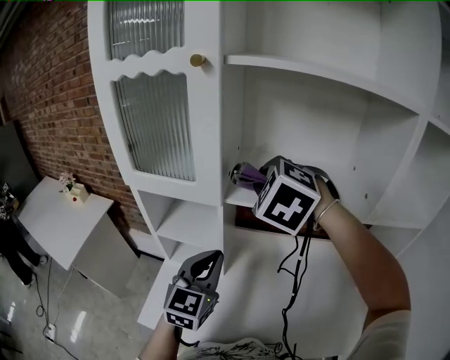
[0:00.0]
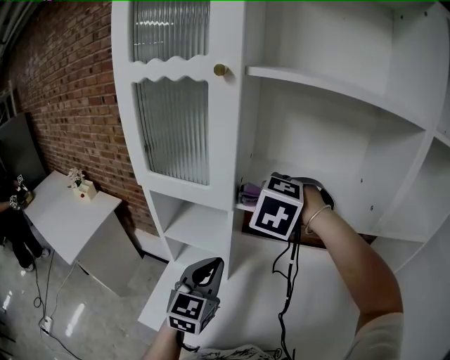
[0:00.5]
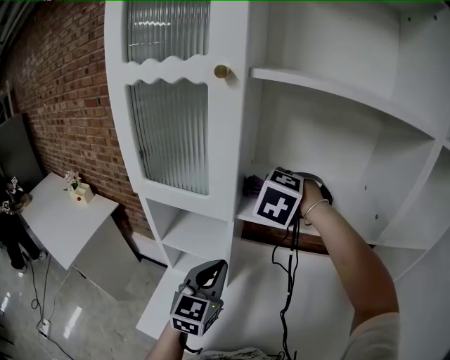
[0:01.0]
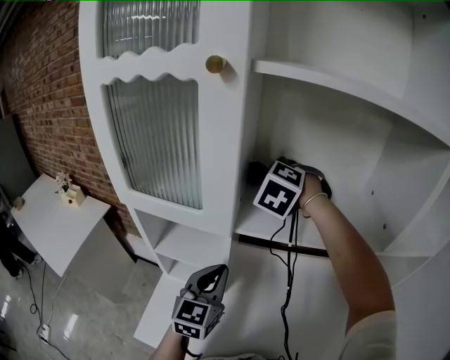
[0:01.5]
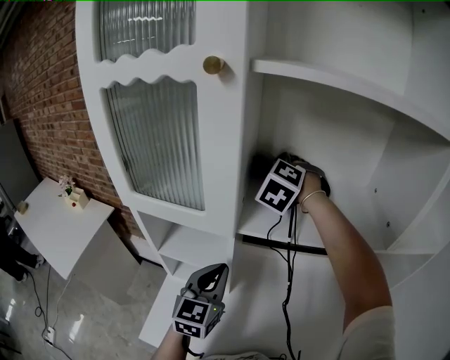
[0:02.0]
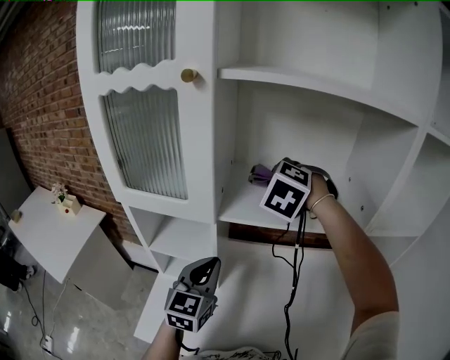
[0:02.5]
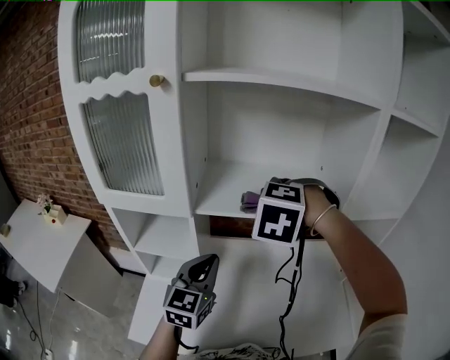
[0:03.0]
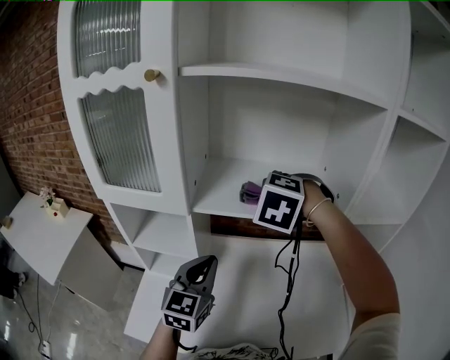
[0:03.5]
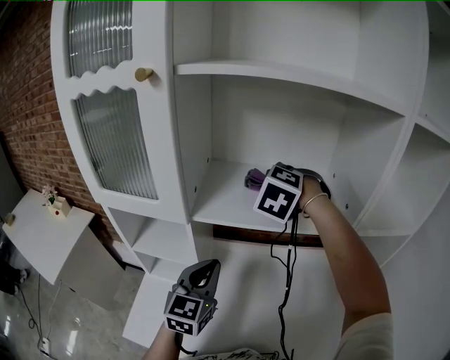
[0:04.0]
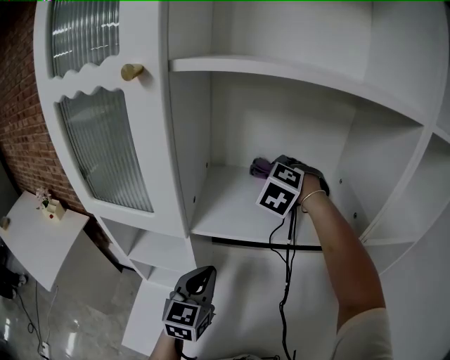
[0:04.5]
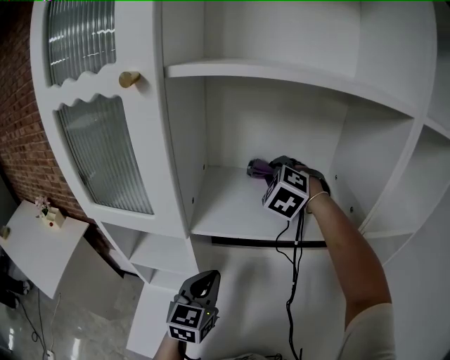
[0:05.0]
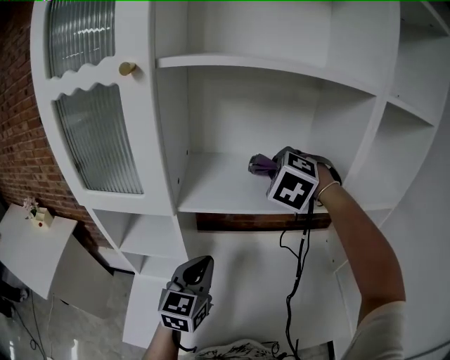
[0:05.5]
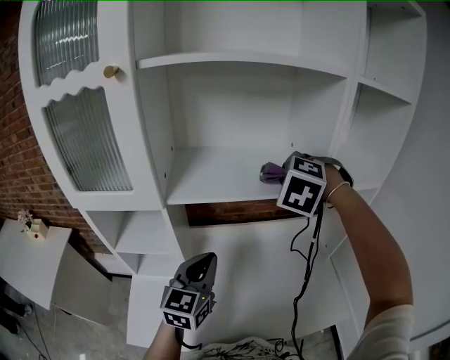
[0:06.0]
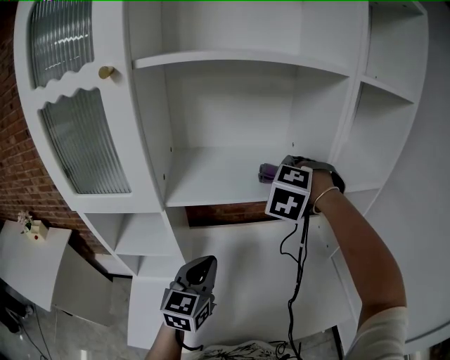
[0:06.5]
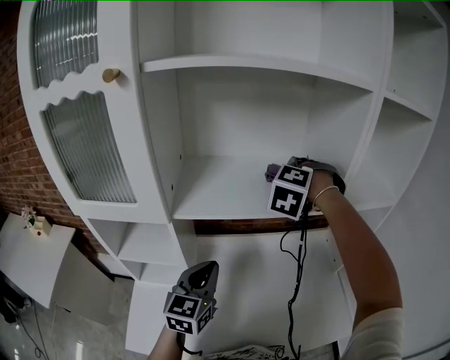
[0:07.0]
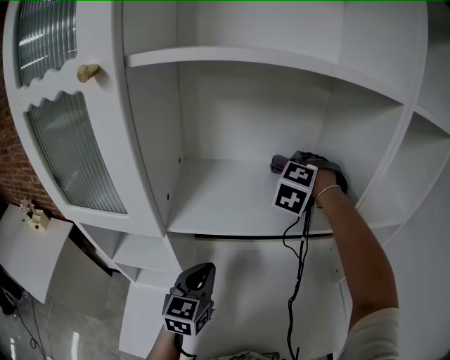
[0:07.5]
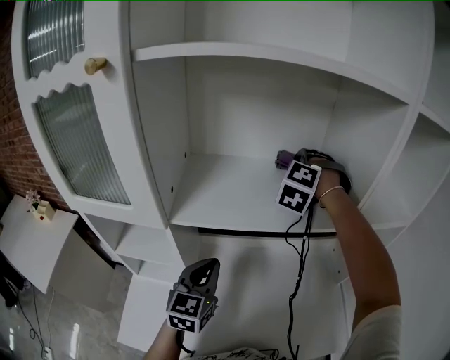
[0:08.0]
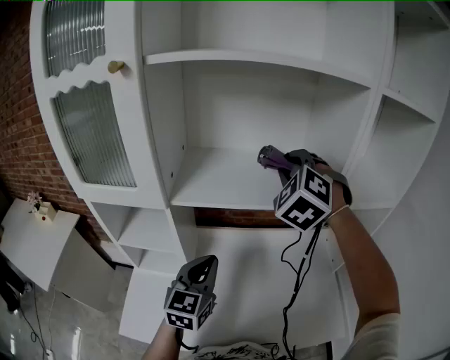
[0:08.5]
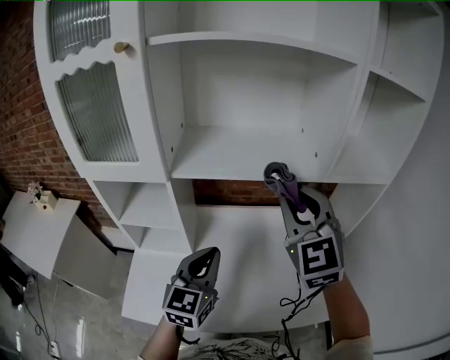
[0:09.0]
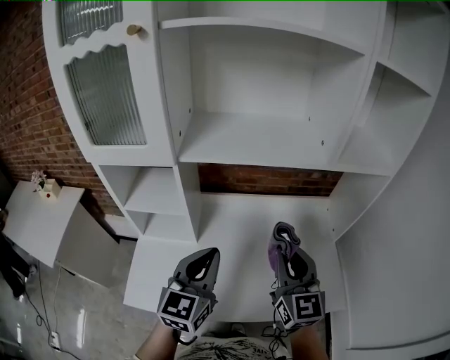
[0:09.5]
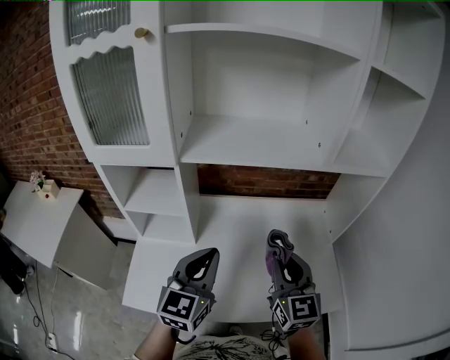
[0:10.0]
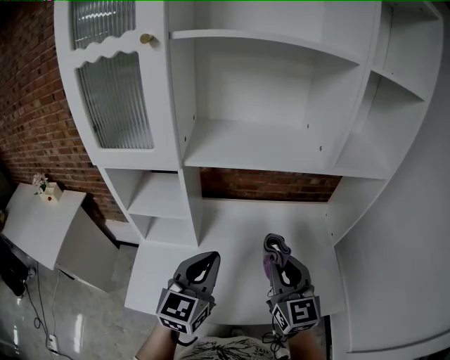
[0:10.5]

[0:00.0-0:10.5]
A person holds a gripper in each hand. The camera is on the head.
0:00.0 to 0:02.0: The left gripper goes some 5 cm forward. Meanwhile the right gripper travels forward by some 20 cm.
0:02.0 to 0:04.0: The left gripper goes approximately 10 cm to the right. Meanwhile the right gripper heads to the right and backward, covering approximately 15 cm.
0:04.0 to 0:06.5: The left gripper shifts by approximately 5 cm, while the right gripper moves to the right, some 15 cm.
0:06.5 to 0:08.5: The right gripper heads upward, covering roughly 5 cm, travels forward and back again, roughly 15 cm each way, and swivels roughly 20 degrees.
0:08.5 to 0:10.5: The right gripper is displaced backward and downward by approximately 35 cm, and rolls clockwise, seen from behind, by roughly 60 degrees; the left gripper goes roughly 10 cm backward.

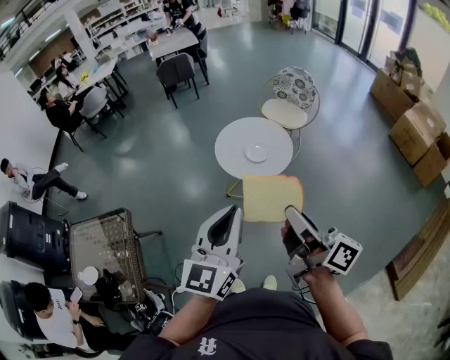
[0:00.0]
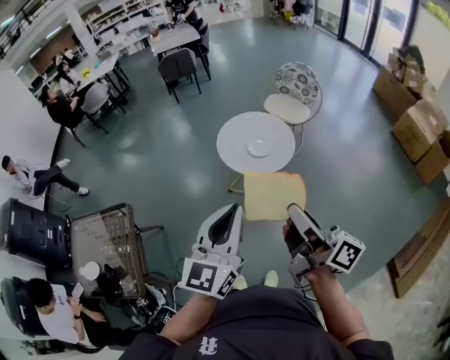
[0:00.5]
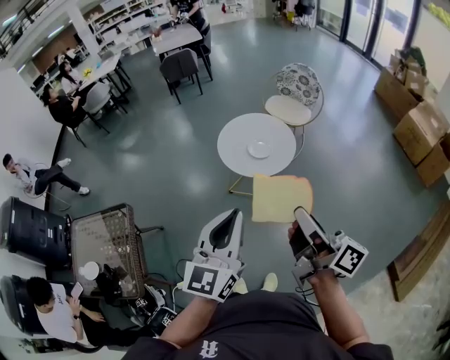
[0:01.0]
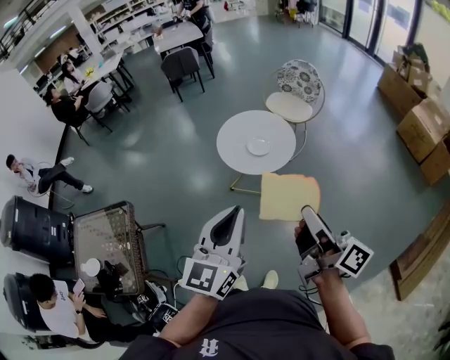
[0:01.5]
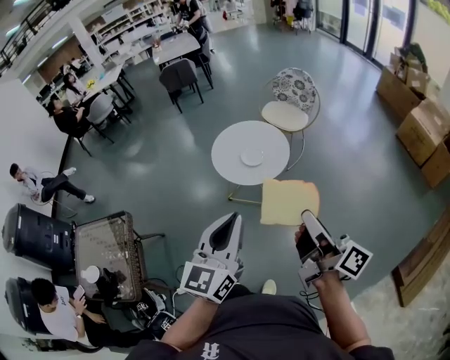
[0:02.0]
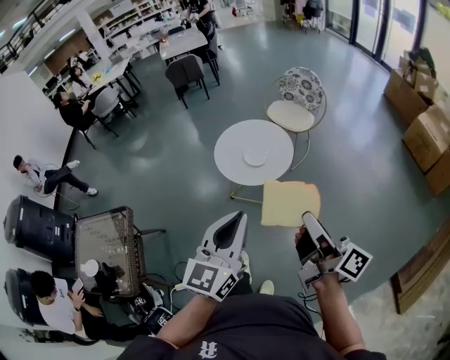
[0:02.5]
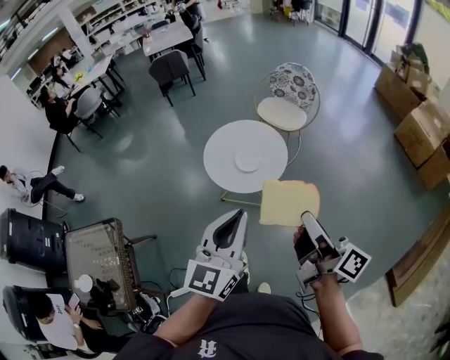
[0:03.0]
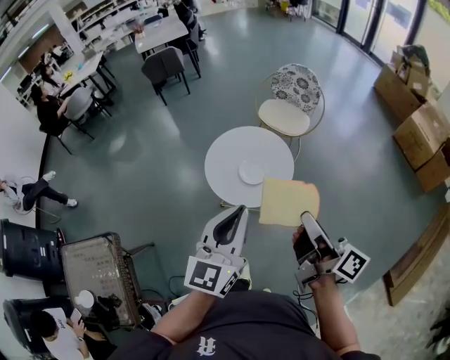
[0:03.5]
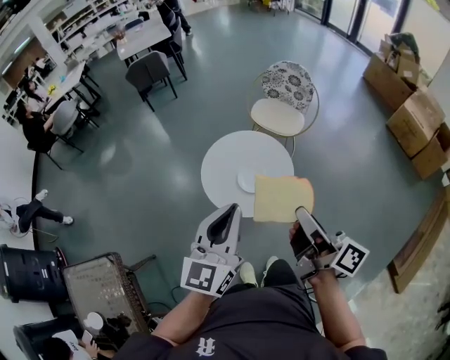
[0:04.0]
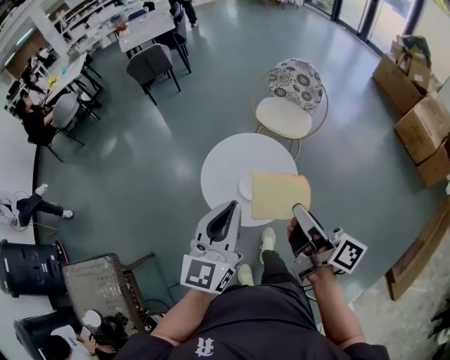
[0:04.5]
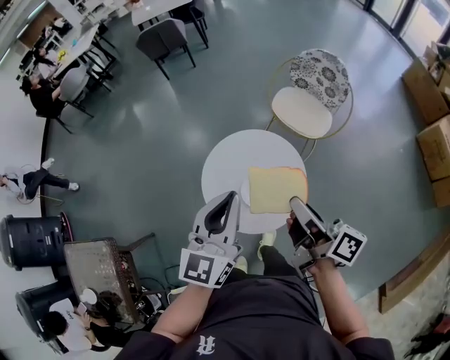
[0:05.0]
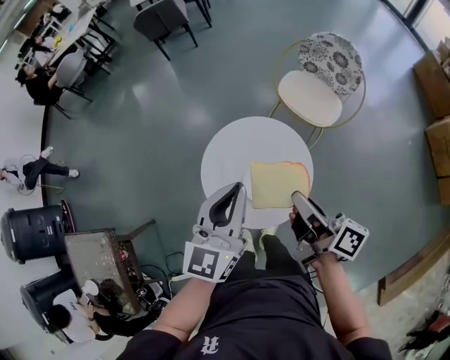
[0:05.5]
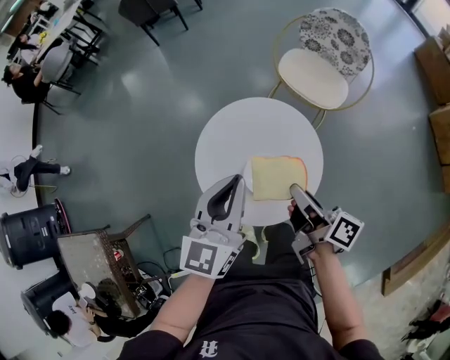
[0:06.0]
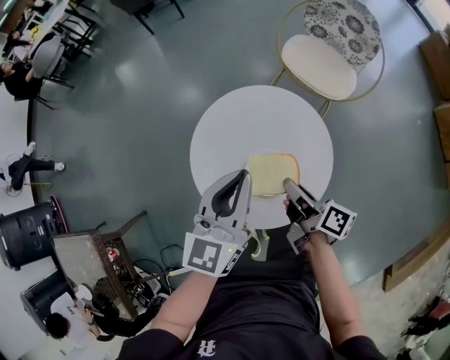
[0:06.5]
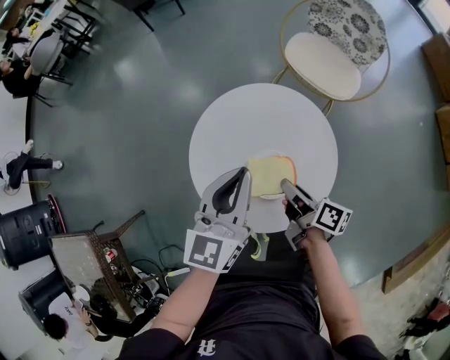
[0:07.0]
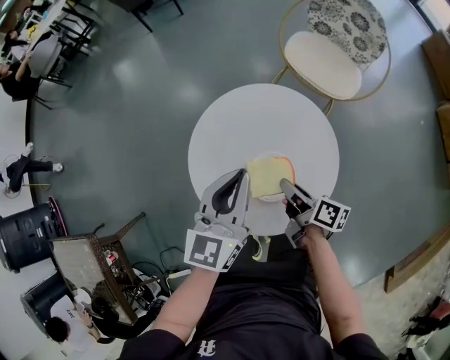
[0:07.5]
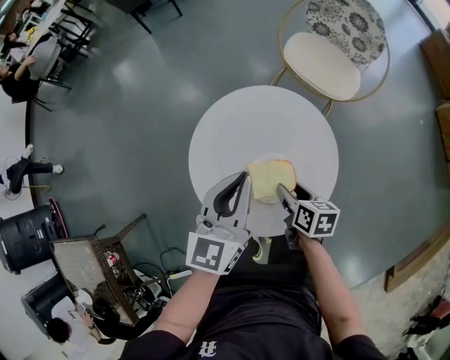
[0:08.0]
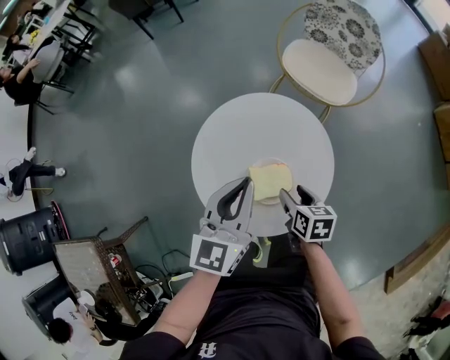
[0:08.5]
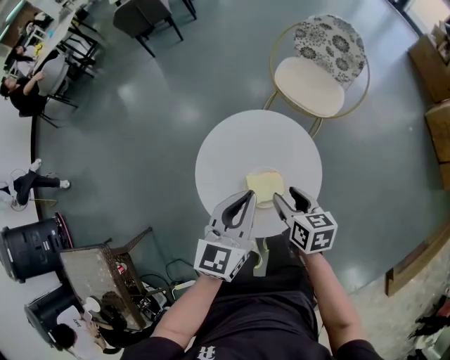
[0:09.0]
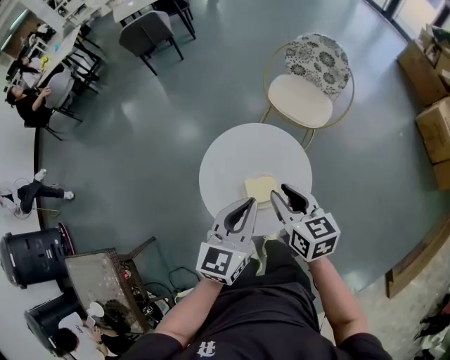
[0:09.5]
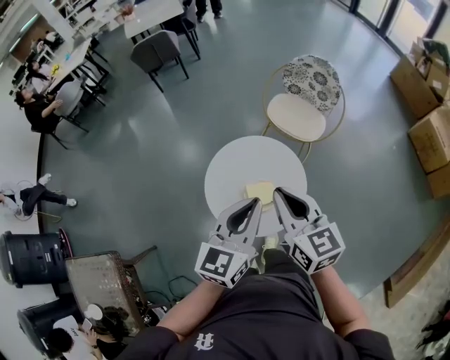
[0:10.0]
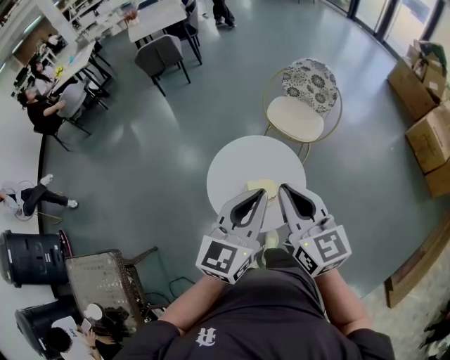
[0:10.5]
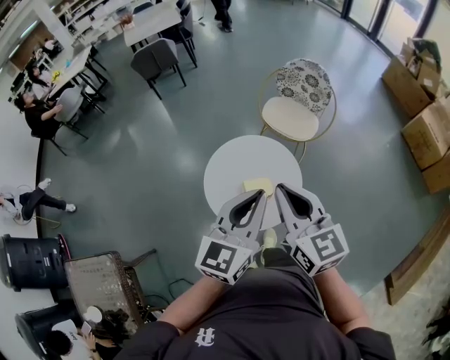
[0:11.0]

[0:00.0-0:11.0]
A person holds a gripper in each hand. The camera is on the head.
0:00.0 to 0:02.0: The left gripper is displaced to the right by roughly 10 cm, while the right gripper is displaced to the right by about 10 cm.
0:02.0 to 0:03.5: The grippers both shift forward by approximately 20 cm.
0:03.5 to 0:05.5: The right gripper shifts roughly 35 cm forward and downward, and swivels roughly 20 degrees, while the left gripper travels forward by some 30 cm.
0:05.5 to 0:07.5: The right gripper is displaced downward by some 35 cm, and turns by roughly 20 degrees. Meanwhile the left gripper heads downward, covering approximately 20 cm.
0:07.5 to 0:09.0: The right gripper shifts approximately 10 cm upward, turns by roughly 40 degrees, and opens. The left gripper travels upward by some 5 cm.
0:09.0 to 0:11.0: The right gripper travels upward by roughly 35 cm, tips its fingers upward by about 30 degrees, and closes up. Meanwhile the left gripper moves upward and backward, about 25 cm.

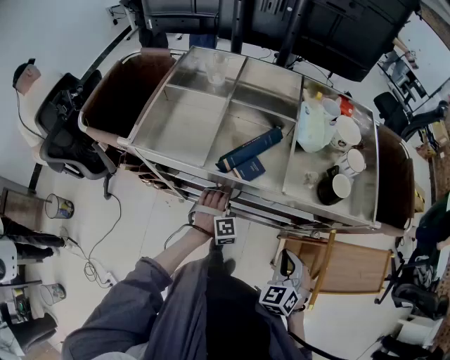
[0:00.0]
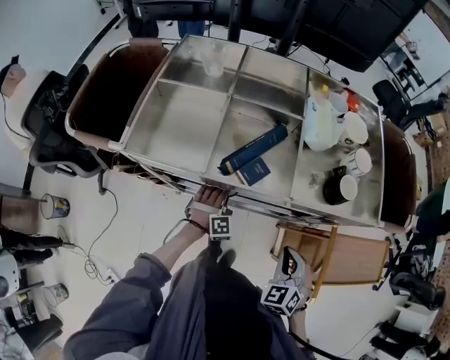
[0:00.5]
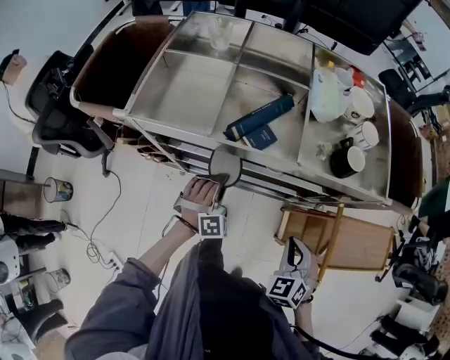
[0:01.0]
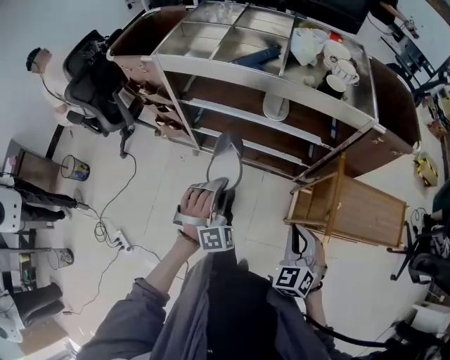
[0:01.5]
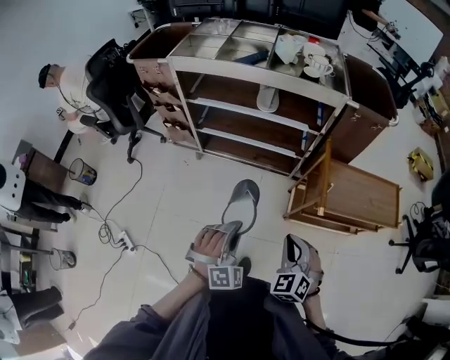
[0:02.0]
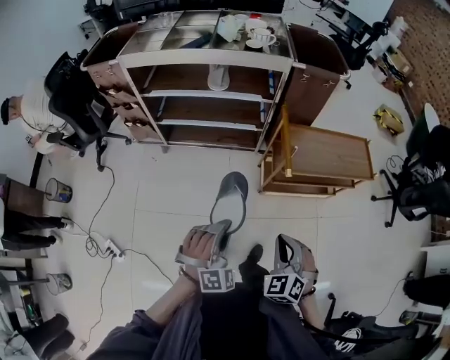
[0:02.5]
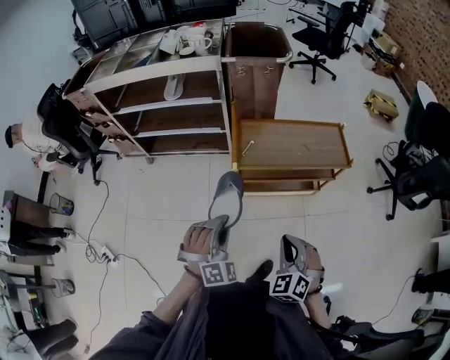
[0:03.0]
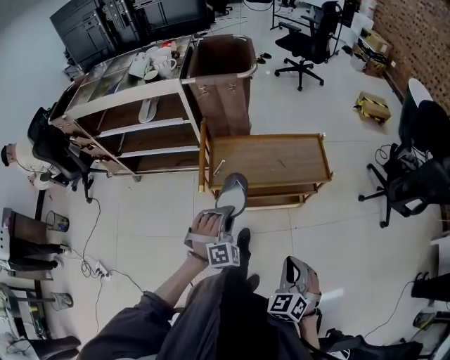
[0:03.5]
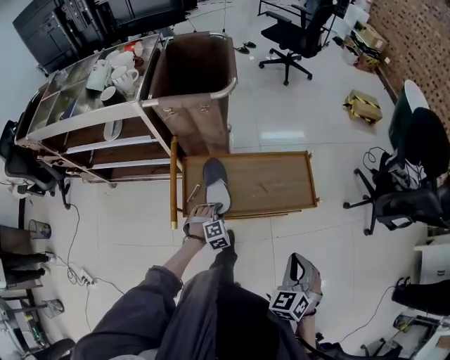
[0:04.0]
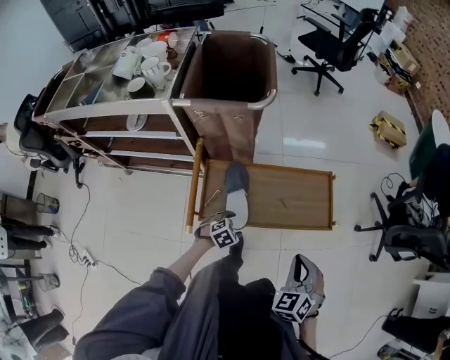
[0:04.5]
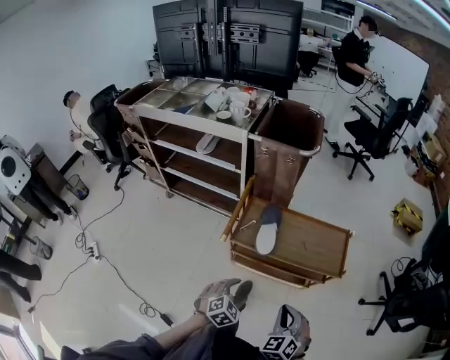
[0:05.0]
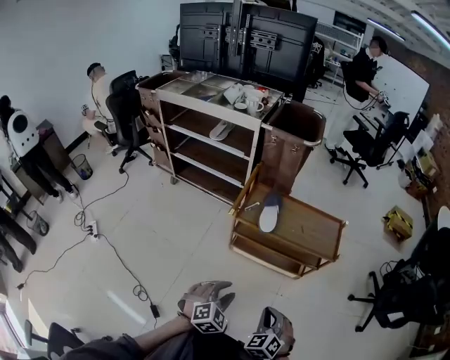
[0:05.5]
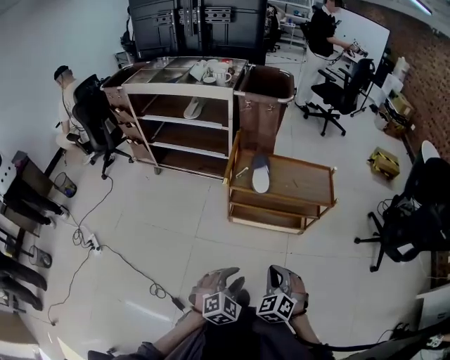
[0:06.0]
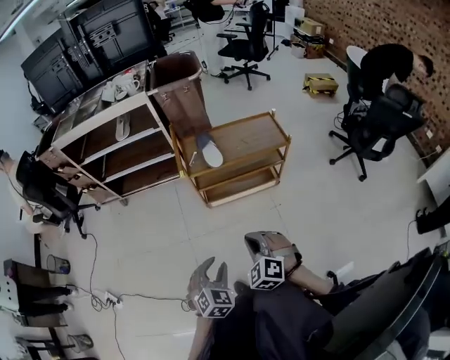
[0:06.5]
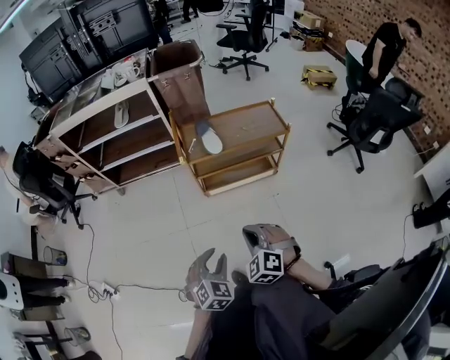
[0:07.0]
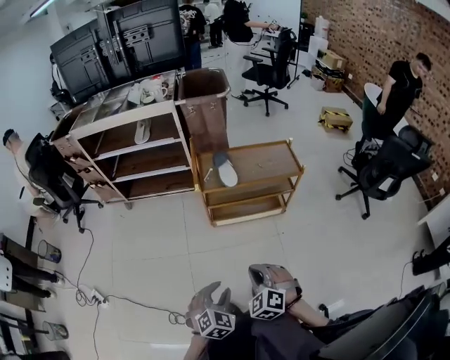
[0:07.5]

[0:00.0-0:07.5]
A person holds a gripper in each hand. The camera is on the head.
0:00.0 to 0:02.0: The two grippers go approximately 50 cm backward. The left gripper changes its angle by about 20 degrees, and closes up.
0:02.0 to 0:04.0: The two grippers travel together, to the right, roughly 60 cm. The left gripper moves downward, approximately 25 cm, and swivels some 30 degrees. Meanwhile the right gripper turns by roughly 30 degrees.
0:04.0 to 0:05.5: The right gripper shifts by roughly 25 cm, and swivels approximately 30 degrees. The left gripper moves roughly 40 cm, swivels approximately 30 degrees, and opens, then closes once more.
0:05.5 to 0:07.5: The right gripper is displaced to the left and backward by some 20 cm, while the left gripper goes approximately 20 cm backward and to the left.
